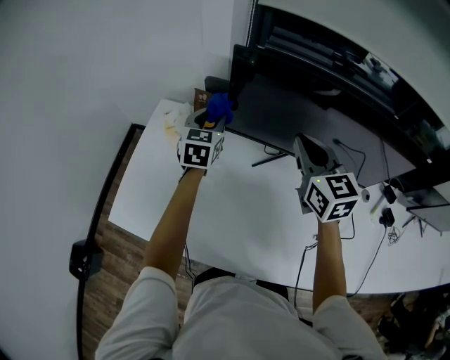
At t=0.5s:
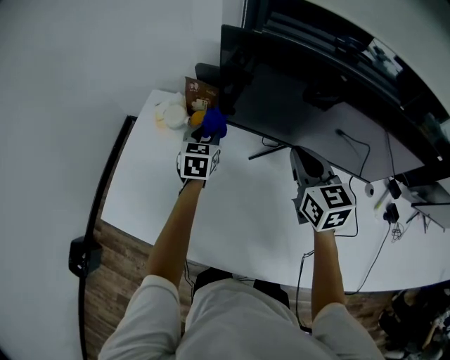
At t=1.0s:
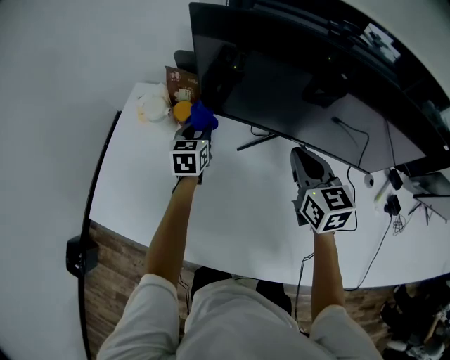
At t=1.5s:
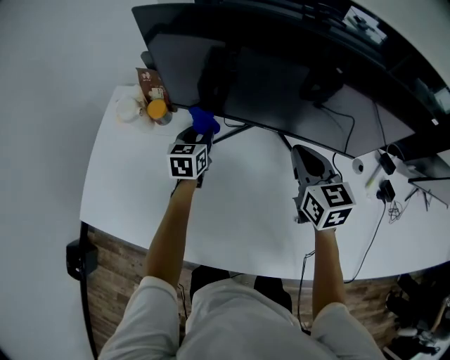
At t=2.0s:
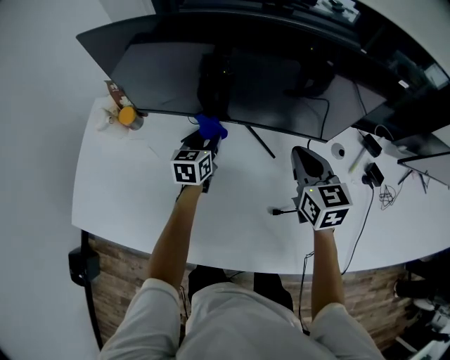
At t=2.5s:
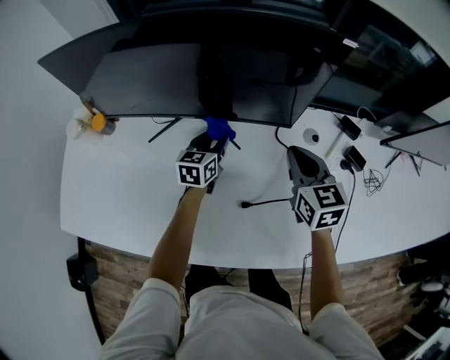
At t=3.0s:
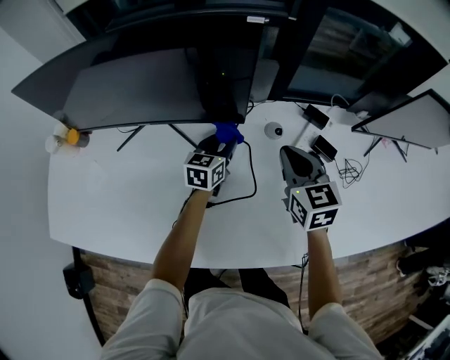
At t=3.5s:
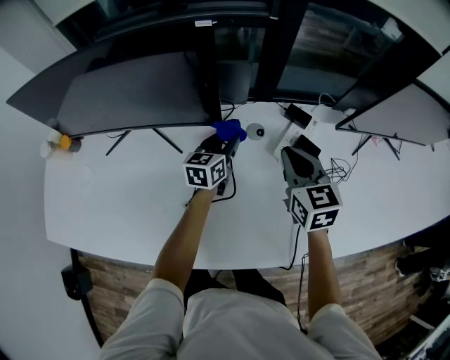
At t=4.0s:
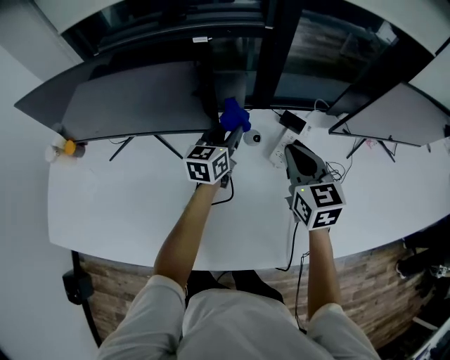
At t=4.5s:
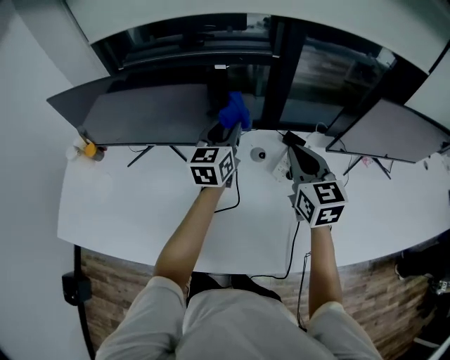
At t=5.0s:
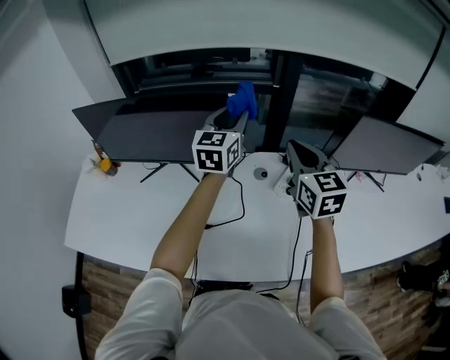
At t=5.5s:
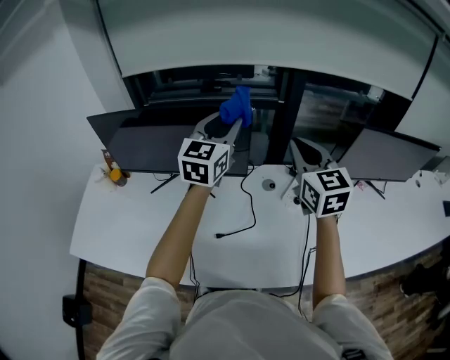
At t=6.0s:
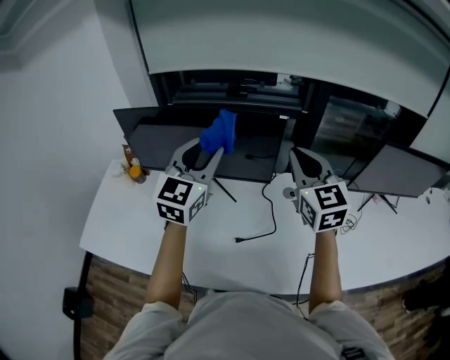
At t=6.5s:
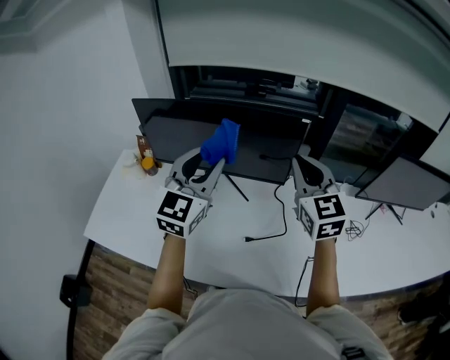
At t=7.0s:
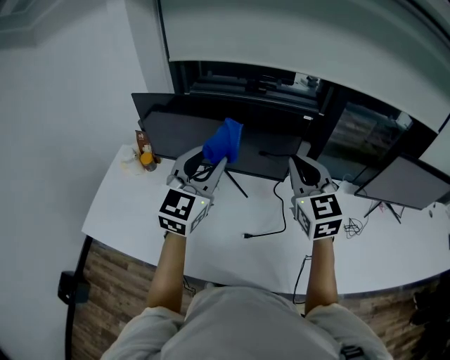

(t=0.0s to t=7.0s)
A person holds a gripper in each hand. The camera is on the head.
t=0.0s - t=2.0s: Both grippers move to the right and downward, approximately 30 cm. The left gripper turns by roughly 20 degrees.
t=2.0s - t=3.5s: Both grippers move to the right, approximately 35 cm.
t=3.5s - t=5.0s: The left gripper heads upward, covering some 35 cm, and rotates about 30 degrees, while the right gripper is displaced upward by some 20 cm.
t=5.0s - t=7.0s: The right gripper heads to the left, covering about 20 cm. The left gripper goes approximately 30 cm to the left and backward.

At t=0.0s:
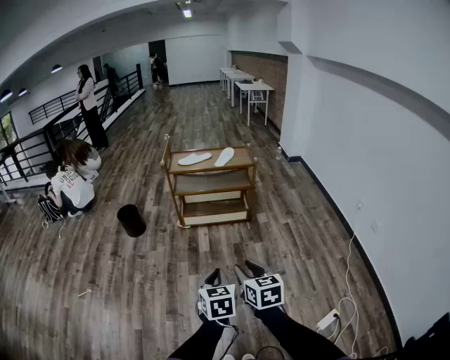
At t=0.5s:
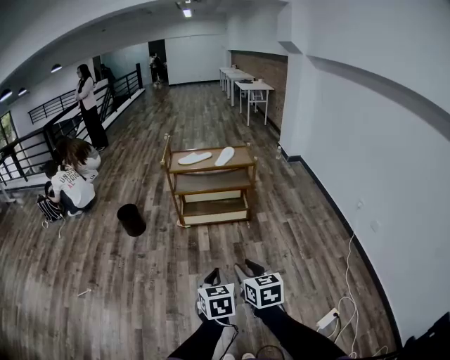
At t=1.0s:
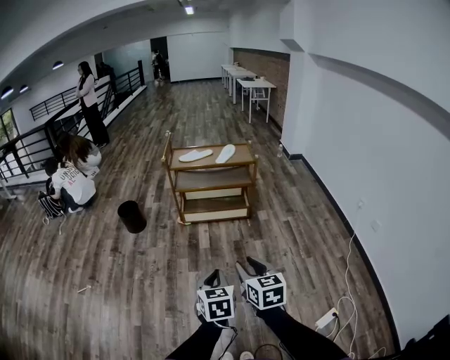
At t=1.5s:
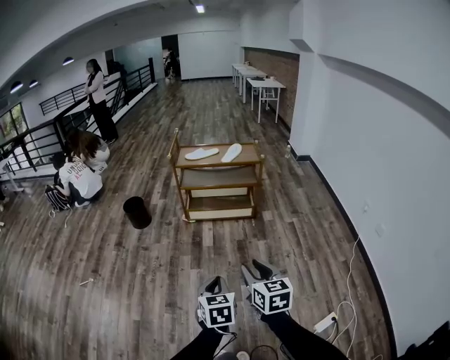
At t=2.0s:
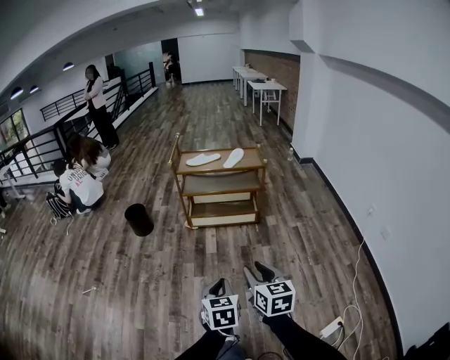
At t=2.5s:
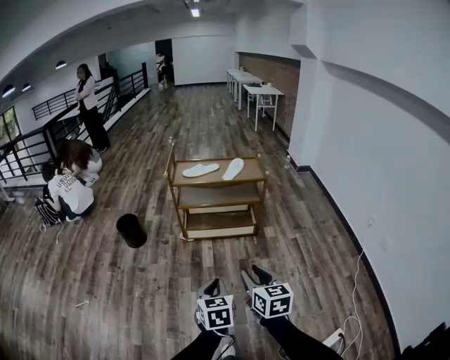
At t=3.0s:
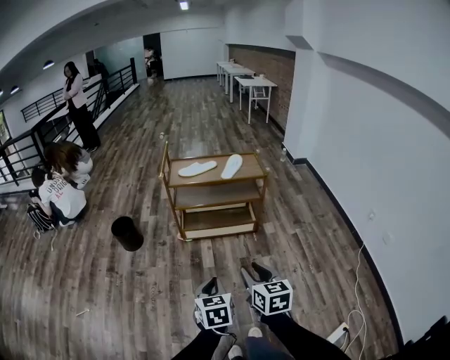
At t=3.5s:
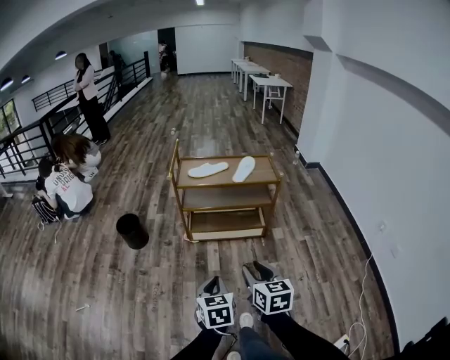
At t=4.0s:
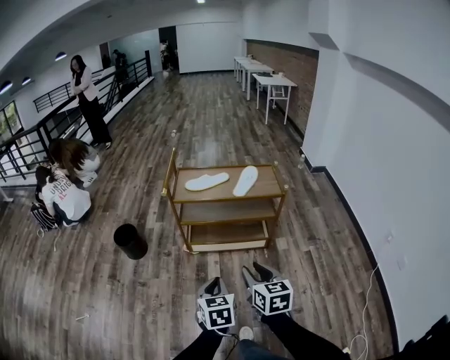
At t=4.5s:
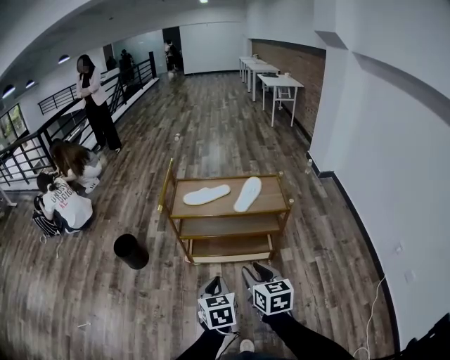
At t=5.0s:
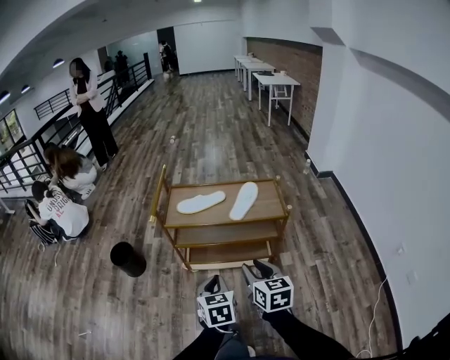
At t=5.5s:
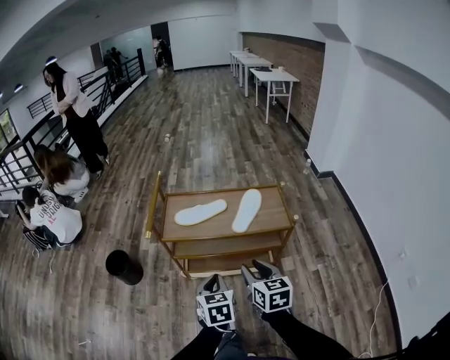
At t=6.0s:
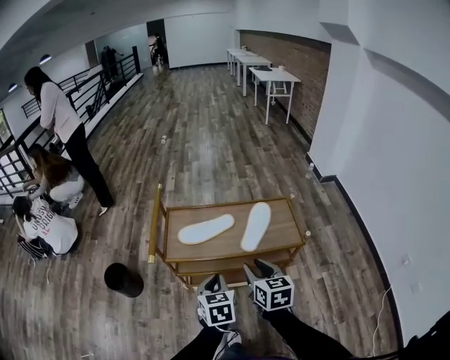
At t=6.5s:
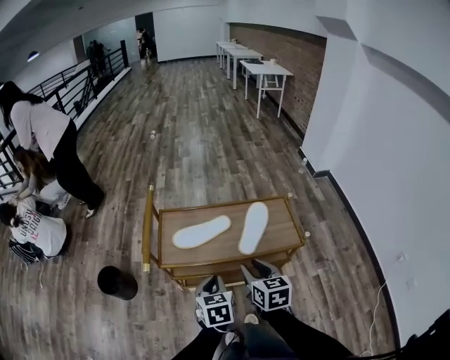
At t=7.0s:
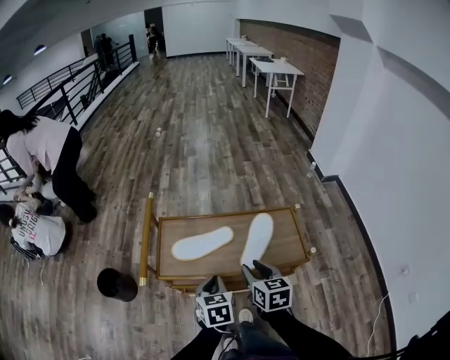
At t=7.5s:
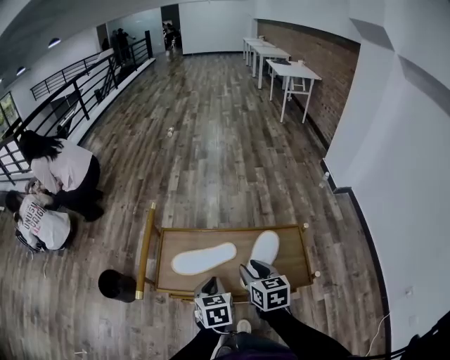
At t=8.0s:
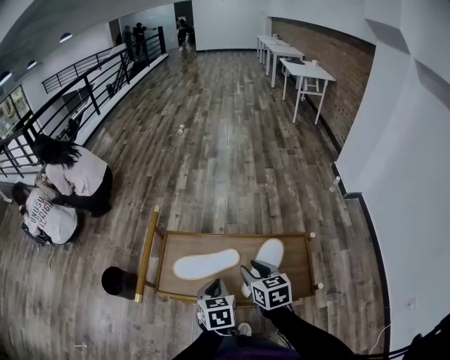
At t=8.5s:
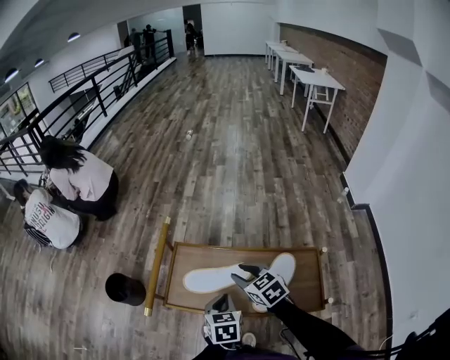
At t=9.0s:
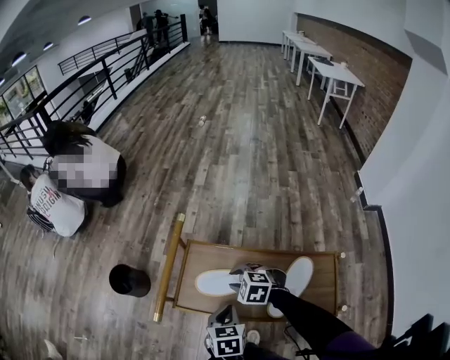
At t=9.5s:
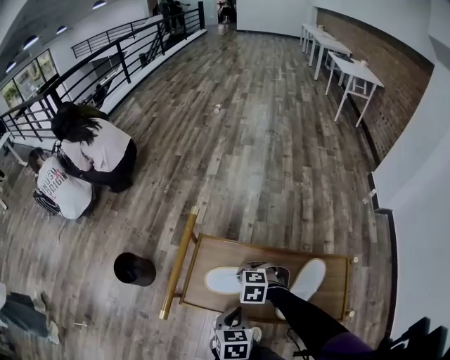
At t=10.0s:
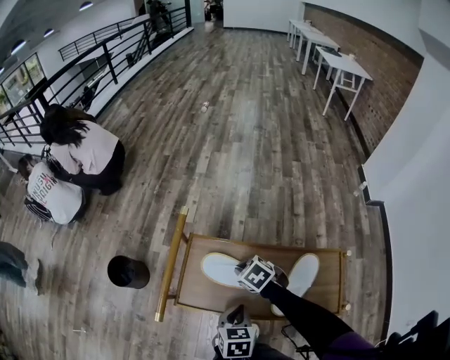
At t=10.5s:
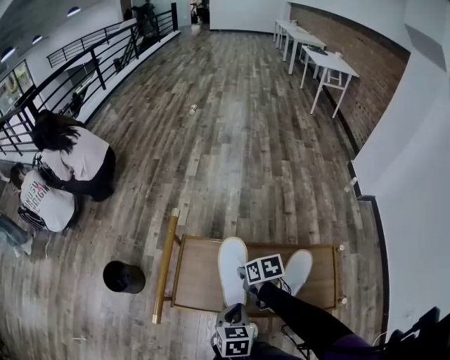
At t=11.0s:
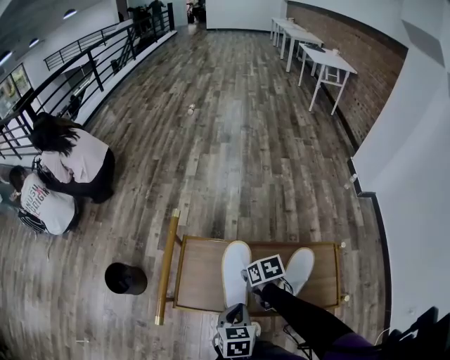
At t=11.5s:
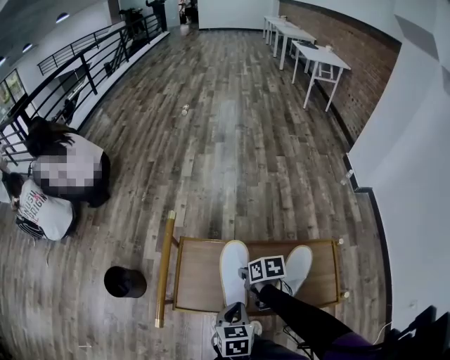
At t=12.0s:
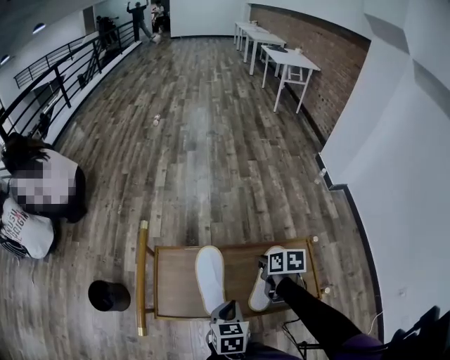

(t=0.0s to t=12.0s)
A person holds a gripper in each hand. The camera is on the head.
t=0.0s - t=2.0s: There are only small adjustments of the grippers.
t=2.0s - t=4.0s: The two grippers go roughly 35 cm forward.
t=4.0s - t=6.0s: Both grippers move forward, approximately 35 cm.
t=6.0s - t=8.0s: The grippers both shift forward by roughly 20 cm.
t=8.0s - t=10.0s: The right gripper is displaced forward, downward and to the left by about 20 cm, angles its fingers downward, by some 30 degrees, and closes up, while the left gripper shifts by approximately 5 cm.
t=10.0s - t=12.0s: The left gripper travels to the right by approximately 5 cm. The right gripper heads to the right, covering roughly 20 cm, and rolls clockwise, seen from behind, by approximately 60 degrees.

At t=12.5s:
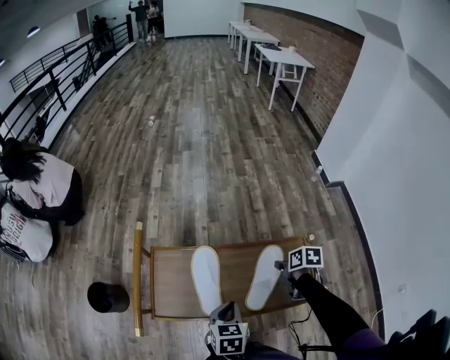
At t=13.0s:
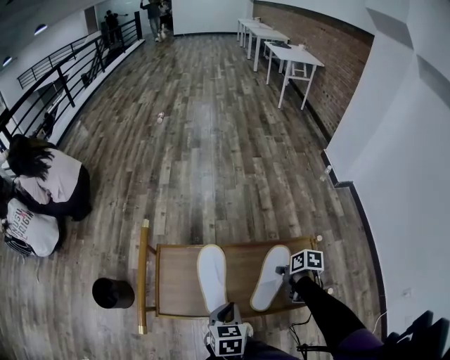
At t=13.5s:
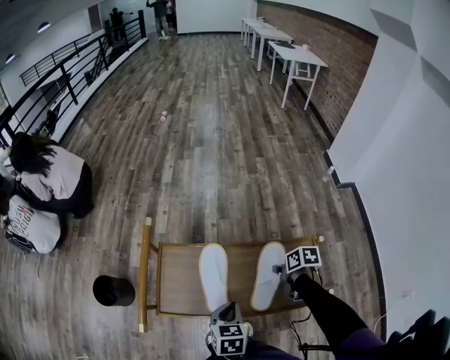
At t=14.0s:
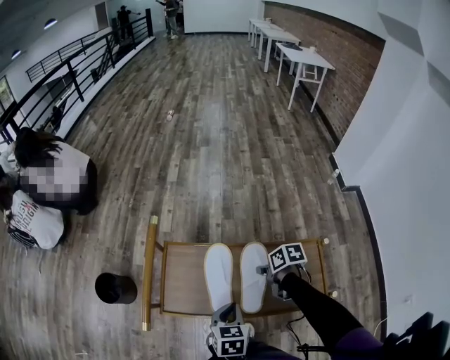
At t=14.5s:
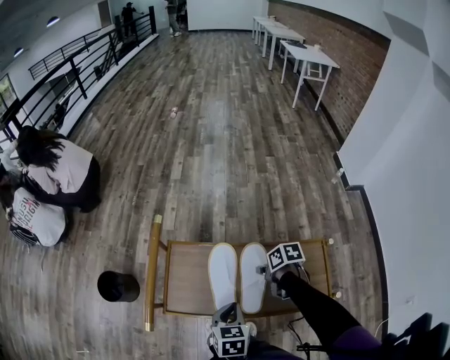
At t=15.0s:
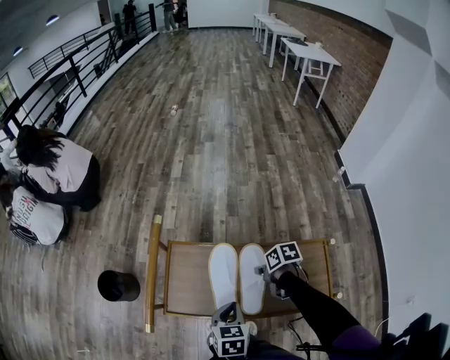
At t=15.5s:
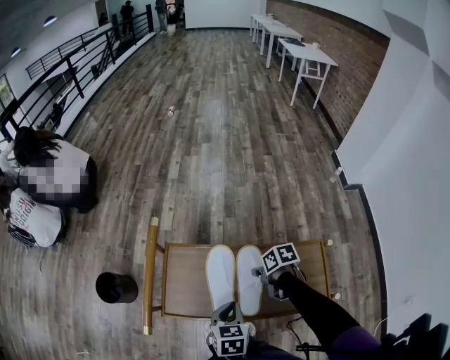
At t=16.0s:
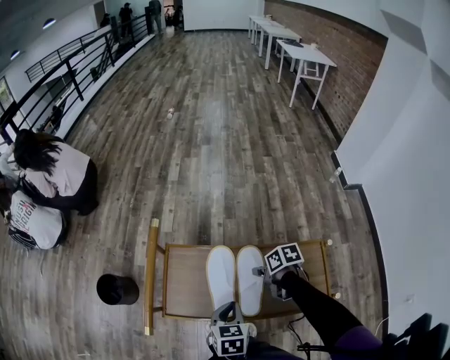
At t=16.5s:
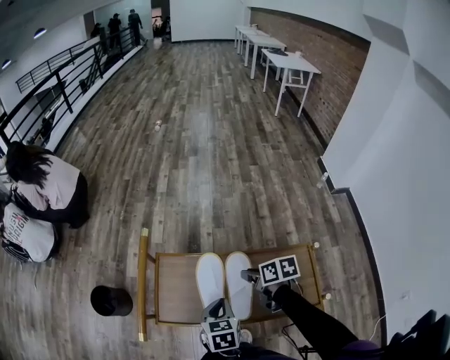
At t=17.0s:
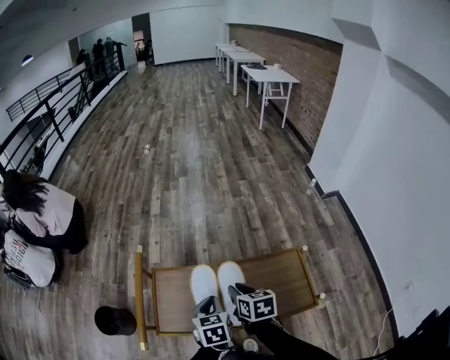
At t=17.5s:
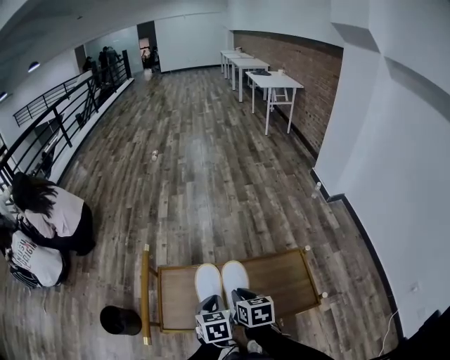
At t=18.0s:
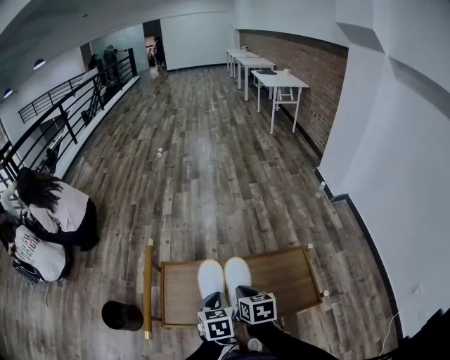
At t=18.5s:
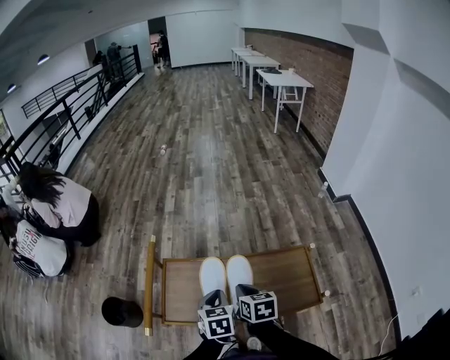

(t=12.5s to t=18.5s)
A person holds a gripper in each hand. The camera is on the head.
t=12.5s - t=14.5s: The right gripper heads to the left, covering some 15 cm, and swivels roughly 20 degrees.
t=14.5s - t=16.5s: The right gripper moves upward, some 5 cm.
t=16.5s - t=18.5s: The right gripper moves backward, roughly 5 cm, and swivels roughly 30 degrees.

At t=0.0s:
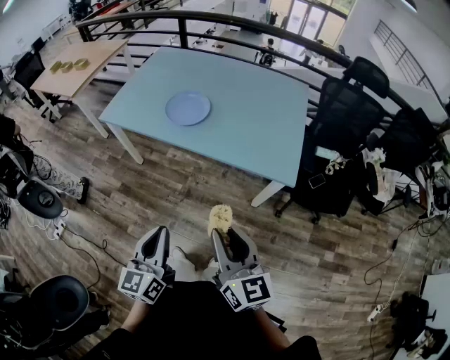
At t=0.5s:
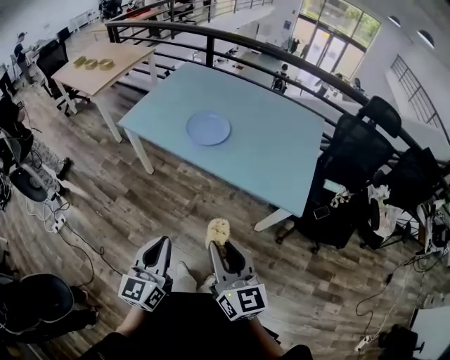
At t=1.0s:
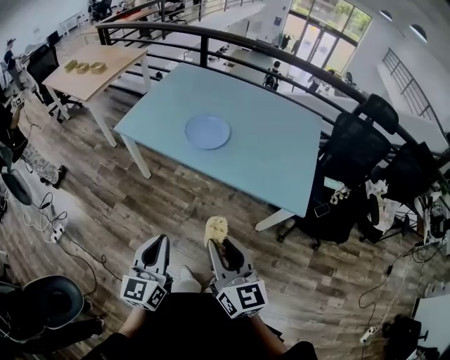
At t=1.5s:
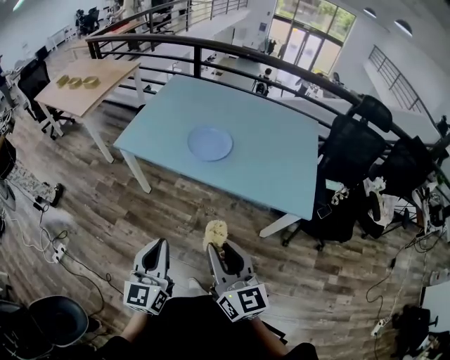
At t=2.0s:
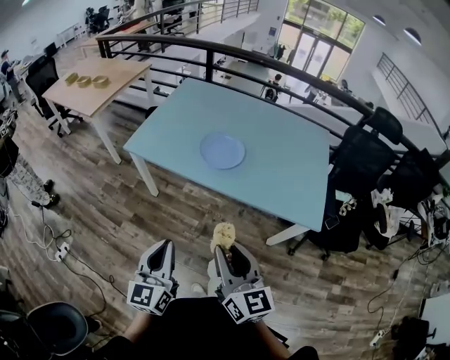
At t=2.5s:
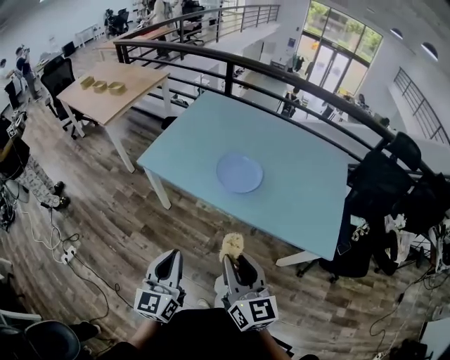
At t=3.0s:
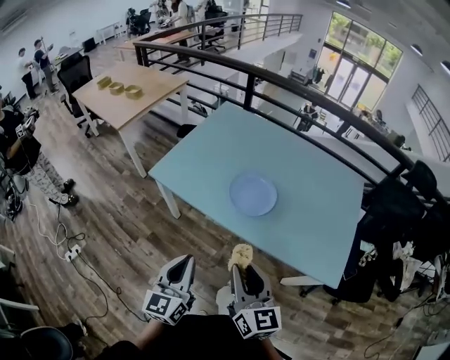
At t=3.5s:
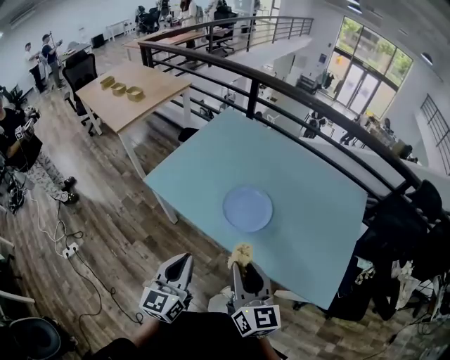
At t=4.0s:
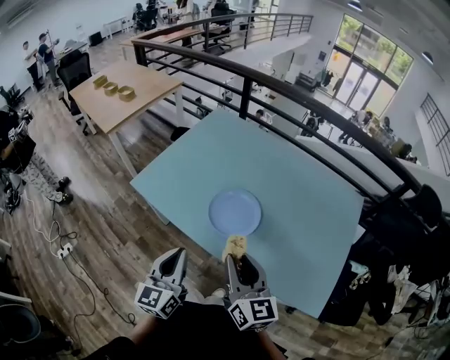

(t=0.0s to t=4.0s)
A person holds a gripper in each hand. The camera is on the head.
t=0.0s - t=2.0s: Both grippers move to the left and forward, roughly 20 cm.
t=2.0s - t=4.0s: Both grippers move forward, approximately 25 cm.
